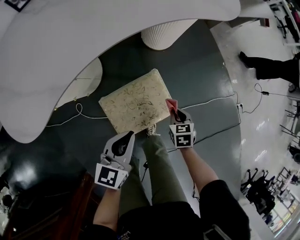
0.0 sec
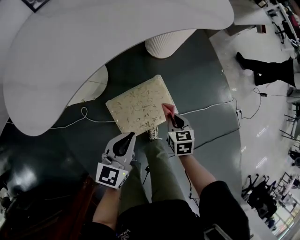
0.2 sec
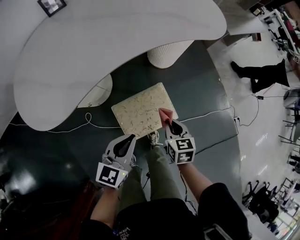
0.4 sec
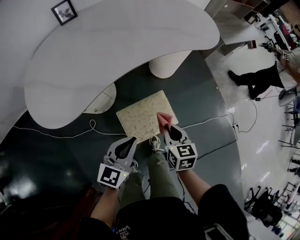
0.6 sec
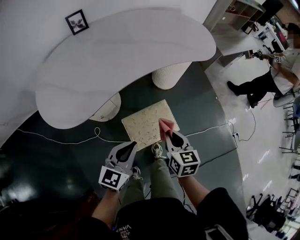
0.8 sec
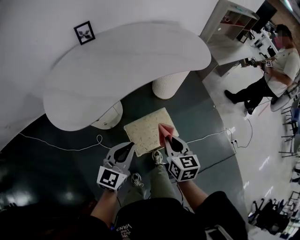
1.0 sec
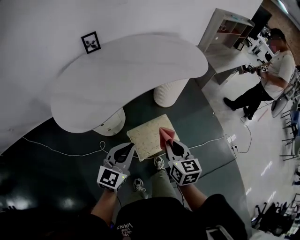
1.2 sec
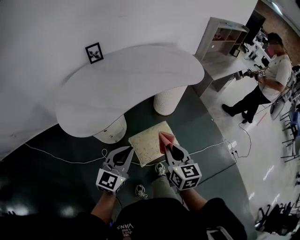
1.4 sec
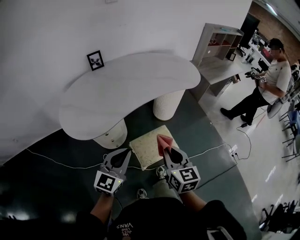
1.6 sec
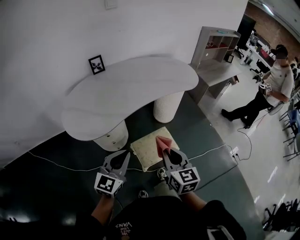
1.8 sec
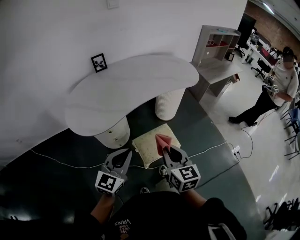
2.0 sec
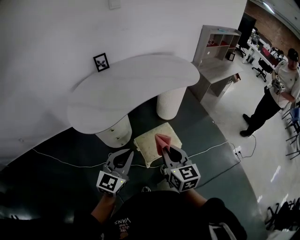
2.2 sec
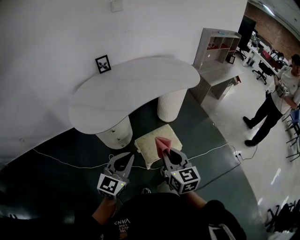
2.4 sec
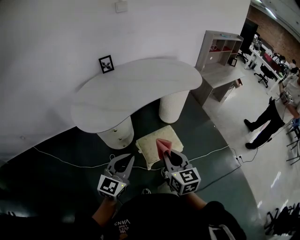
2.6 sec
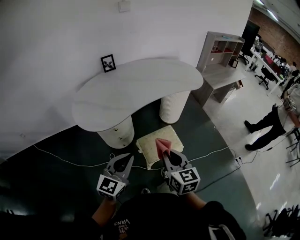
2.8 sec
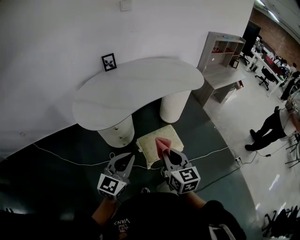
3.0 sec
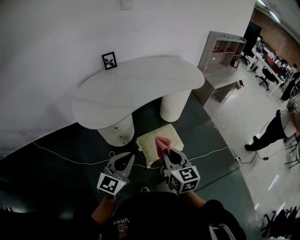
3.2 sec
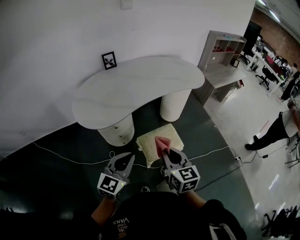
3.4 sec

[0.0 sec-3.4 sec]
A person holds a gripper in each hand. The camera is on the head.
0.0 sec to 1.6 sec: The grippers both shift upward and backward by some 40 cm. The left gripper changes its angle by about 30 degrees; the right gripper tips its fingers upward by some 40 degrees.
1.6 sec to 3.4 sec: The grippers both shift backward by about 10 cm.

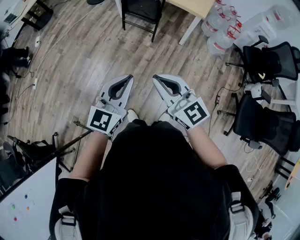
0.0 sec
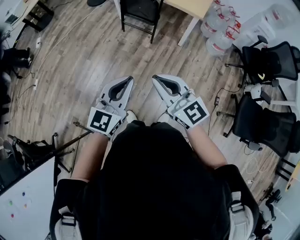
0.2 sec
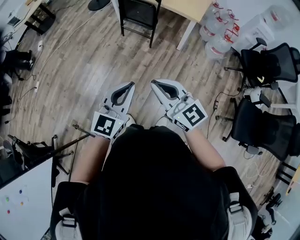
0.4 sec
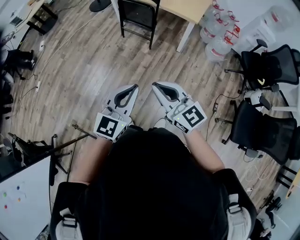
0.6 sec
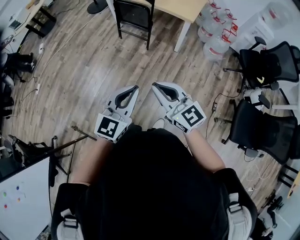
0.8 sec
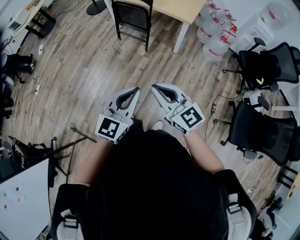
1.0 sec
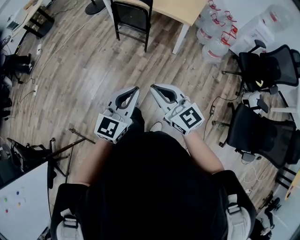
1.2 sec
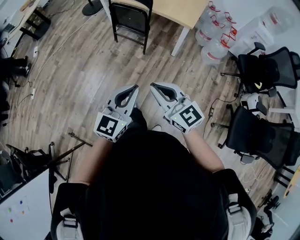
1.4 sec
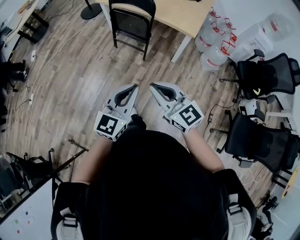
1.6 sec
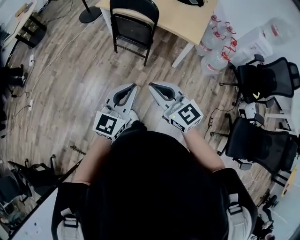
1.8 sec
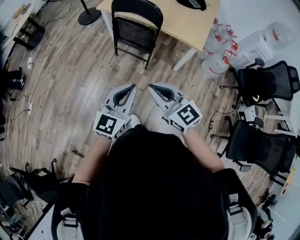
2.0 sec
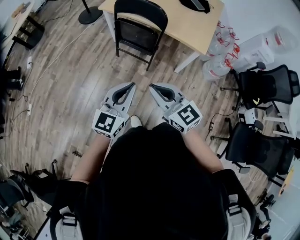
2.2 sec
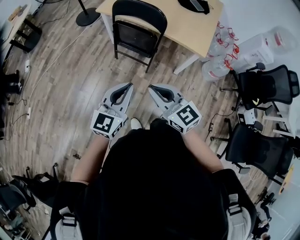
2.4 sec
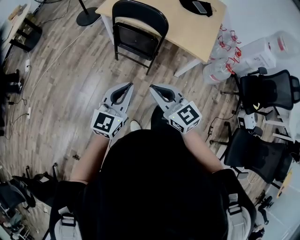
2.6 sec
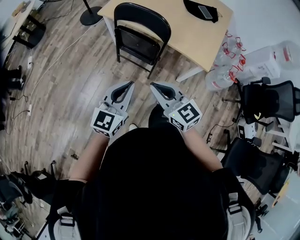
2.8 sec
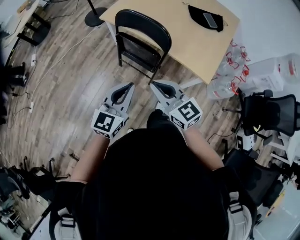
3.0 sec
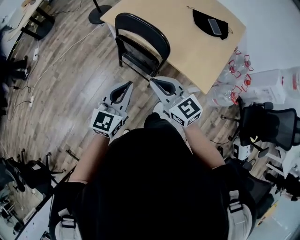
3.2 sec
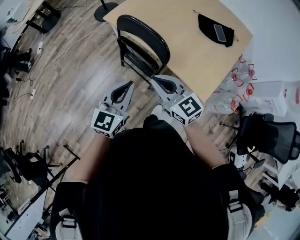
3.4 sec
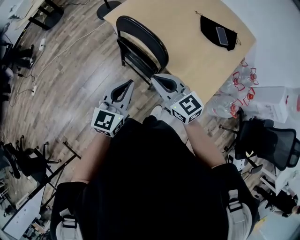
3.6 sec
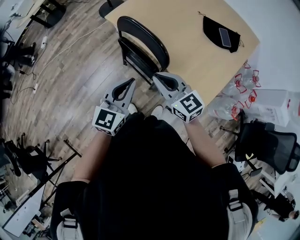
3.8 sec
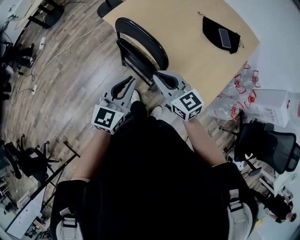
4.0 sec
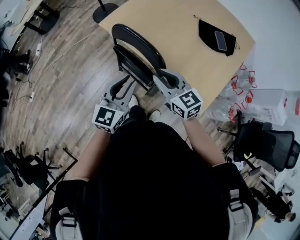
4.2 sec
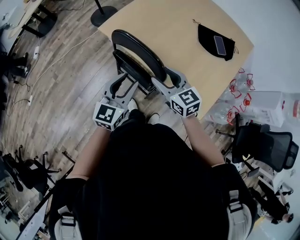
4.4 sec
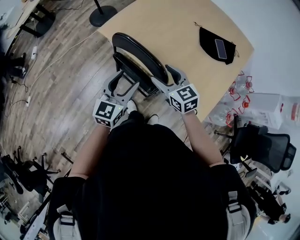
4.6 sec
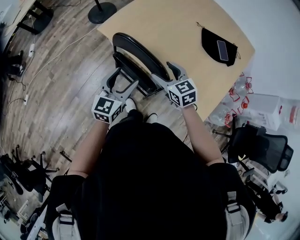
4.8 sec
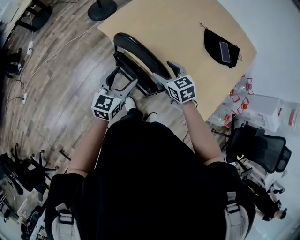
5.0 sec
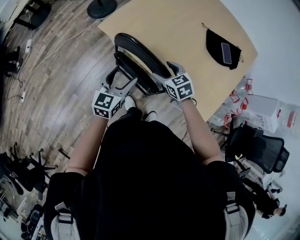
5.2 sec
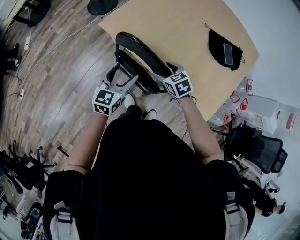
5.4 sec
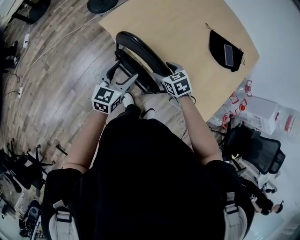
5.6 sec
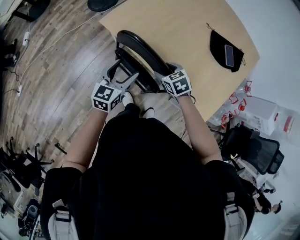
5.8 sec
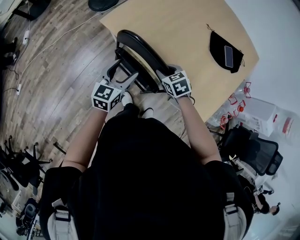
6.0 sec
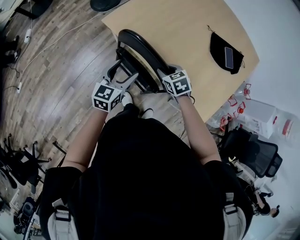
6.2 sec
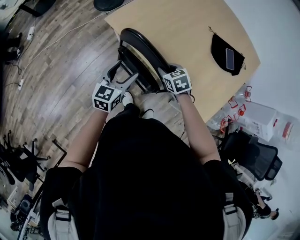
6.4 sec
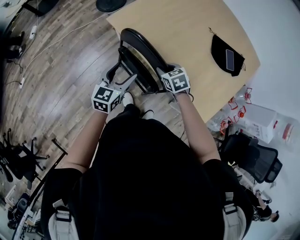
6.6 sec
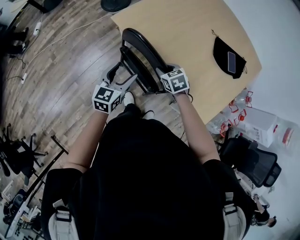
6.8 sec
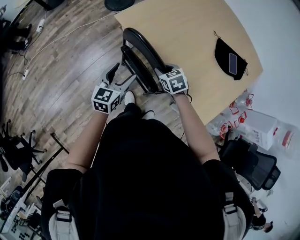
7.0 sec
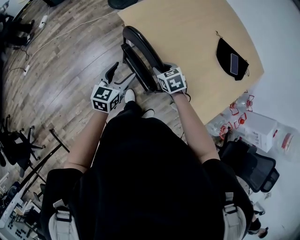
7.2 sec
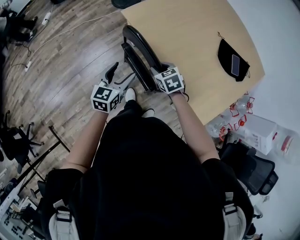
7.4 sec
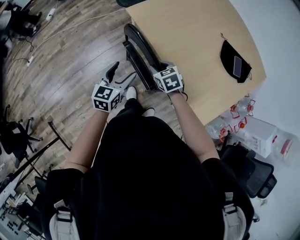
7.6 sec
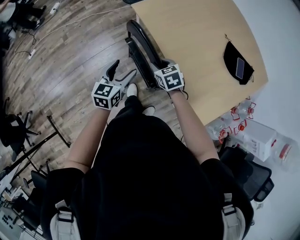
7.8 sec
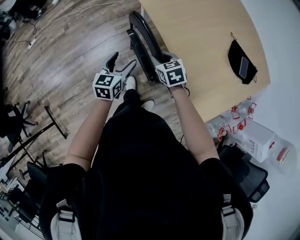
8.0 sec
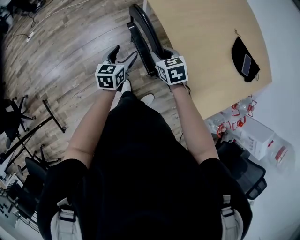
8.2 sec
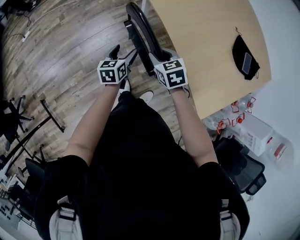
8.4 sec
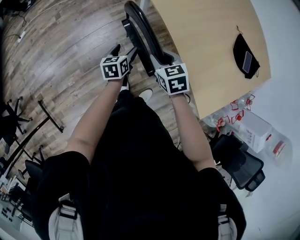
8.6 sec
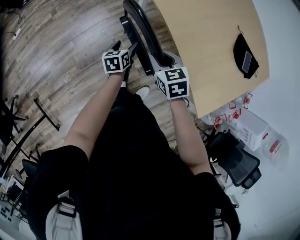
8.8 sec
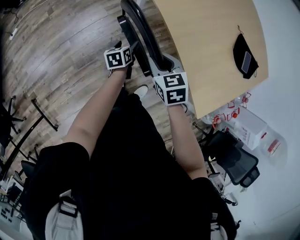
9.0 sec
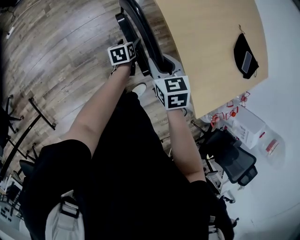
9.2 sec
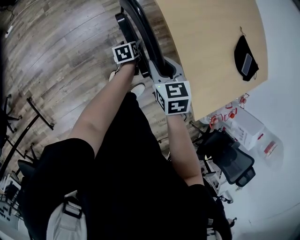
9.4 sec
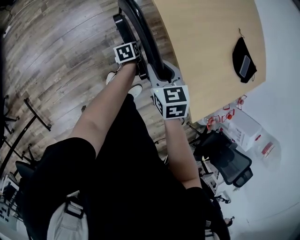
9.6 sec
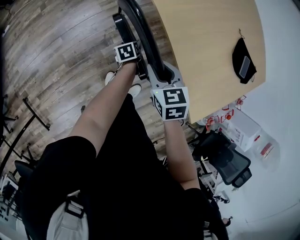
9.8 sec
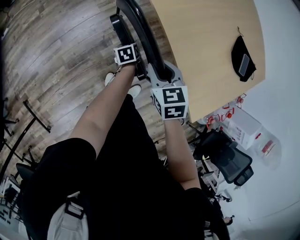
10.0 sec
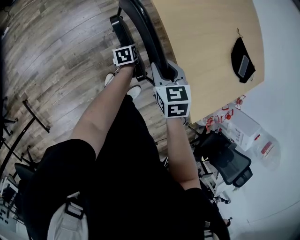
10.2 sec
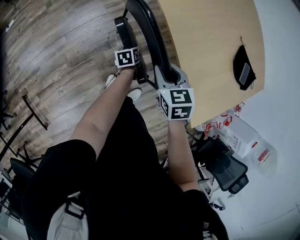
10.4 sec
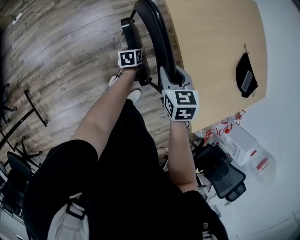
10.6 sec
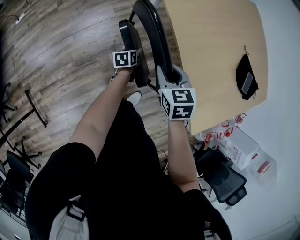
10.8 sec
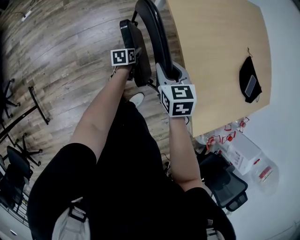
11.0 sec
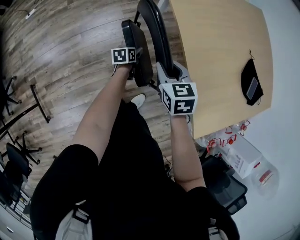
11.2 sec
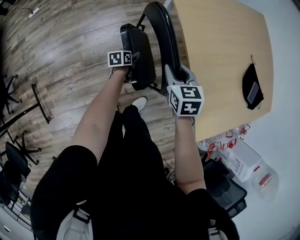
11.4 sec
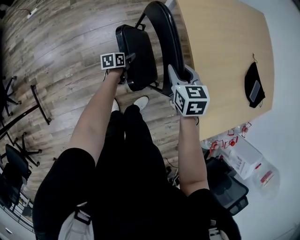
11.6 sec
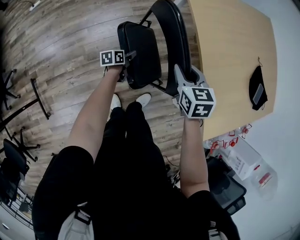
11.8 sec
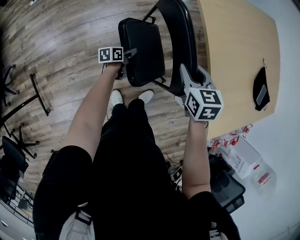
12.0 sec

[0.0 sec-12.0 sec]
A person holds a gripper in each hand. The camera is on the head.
0.0 sec to 1.6 sec: The two grippers go some 20 cm forward and to the right.
1.6 sec to 3.0 sec: Both grippers travel together forward, about 40 cm.
3.0 sec to 4.4 sec: Both grippers move forward and to the right, about 30 cm. The left gripper opens. The right gripper opens.
4.4 sec to 6.0 sec: The left gripper goes roughly 20 cm forward, downward and to the left, and opens. Meanwhile the right gripper shifts about 20 cm downward and forward, and points its fingers approximately 40 degrees further downward.
6.0 sec to 7.6 sec: The left gripper is displaced backward and to the left by roughly 15 cm. Meanwhile the right gripper travels to the left and backward by about 10 cm.
7.6 sec to 9.0 sec: The left gripper moves downward, approximately 25 cm, and swivels approximately 40 degrees. Meanwhile the right gripper heads to the left, covering approximately 10 cm.
9.0 sec to 10.4 sec: The left gripper is displaced downward by approximately 10 cm, and closes.
10.4 sec to 12.0 sec: The left gripper is displaced to the left, backward and downward by about 20 cm; the right gripper shifts some 5 cm to the left.

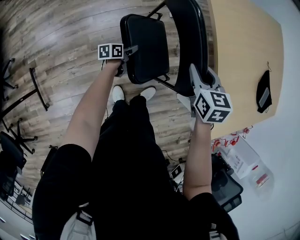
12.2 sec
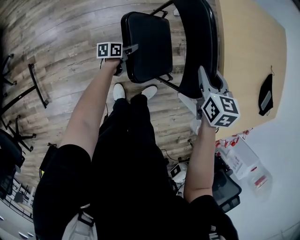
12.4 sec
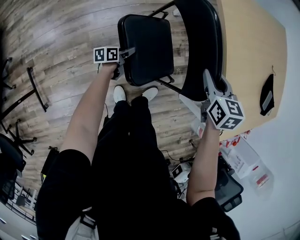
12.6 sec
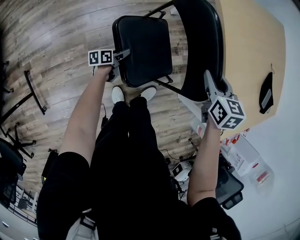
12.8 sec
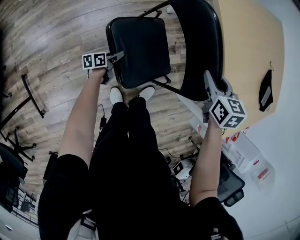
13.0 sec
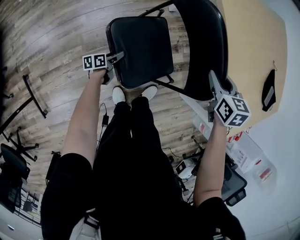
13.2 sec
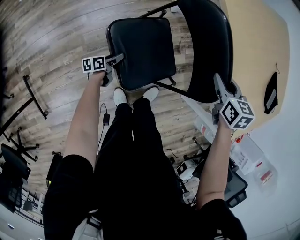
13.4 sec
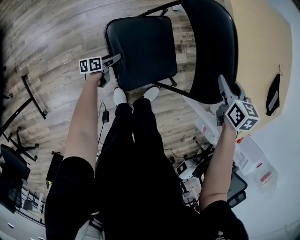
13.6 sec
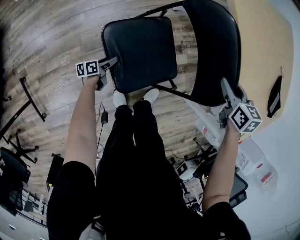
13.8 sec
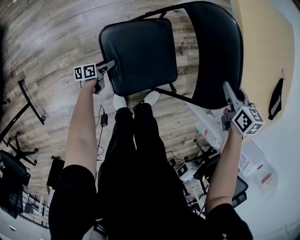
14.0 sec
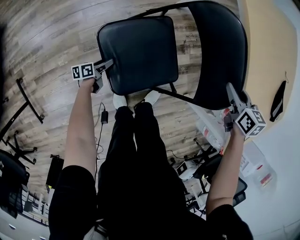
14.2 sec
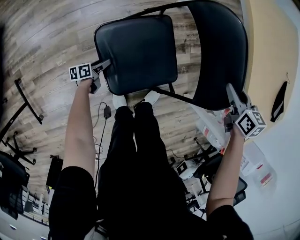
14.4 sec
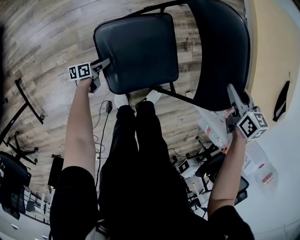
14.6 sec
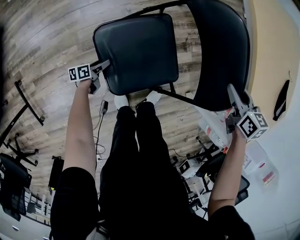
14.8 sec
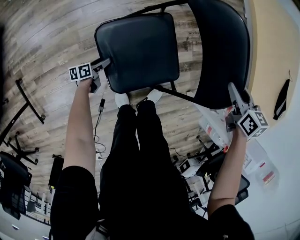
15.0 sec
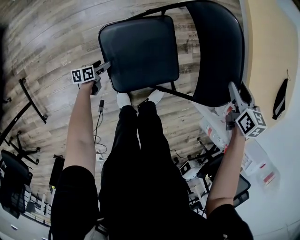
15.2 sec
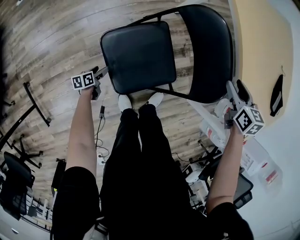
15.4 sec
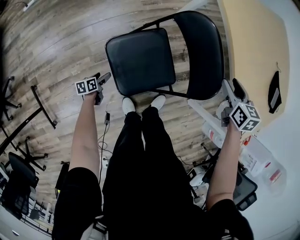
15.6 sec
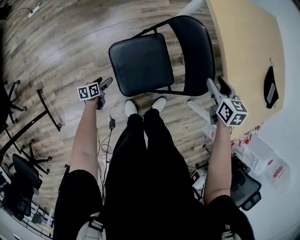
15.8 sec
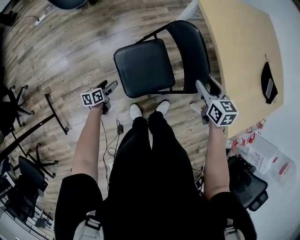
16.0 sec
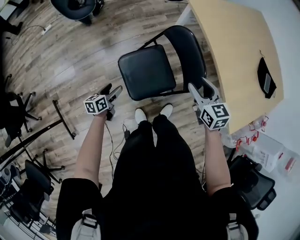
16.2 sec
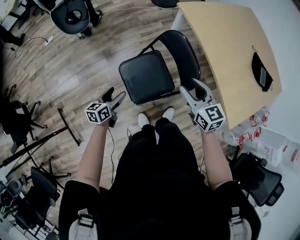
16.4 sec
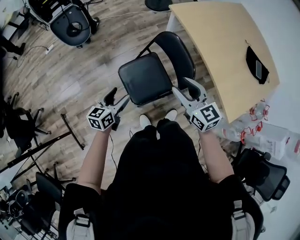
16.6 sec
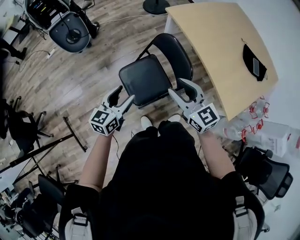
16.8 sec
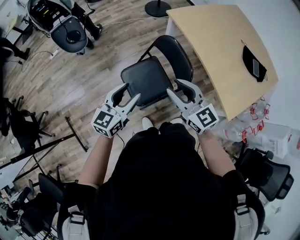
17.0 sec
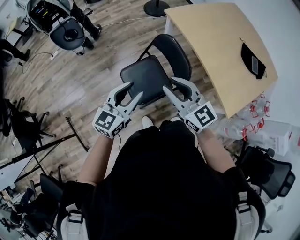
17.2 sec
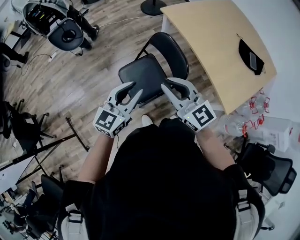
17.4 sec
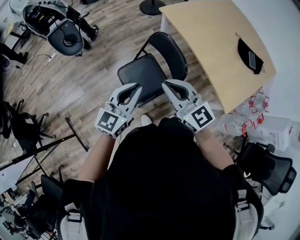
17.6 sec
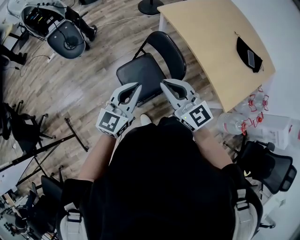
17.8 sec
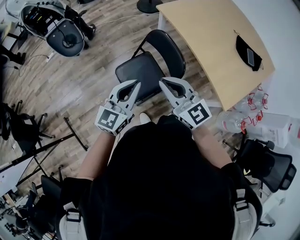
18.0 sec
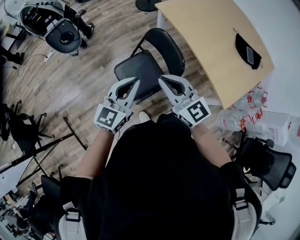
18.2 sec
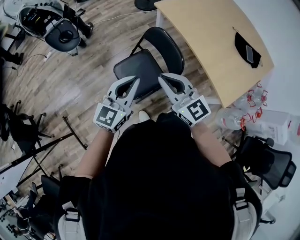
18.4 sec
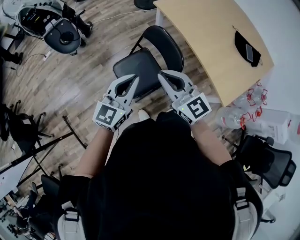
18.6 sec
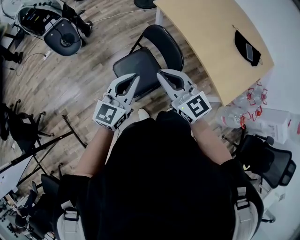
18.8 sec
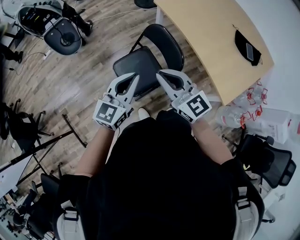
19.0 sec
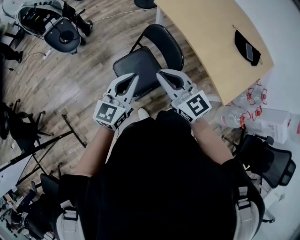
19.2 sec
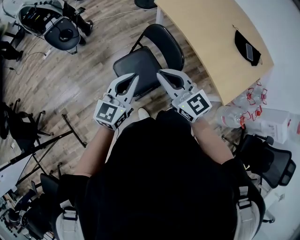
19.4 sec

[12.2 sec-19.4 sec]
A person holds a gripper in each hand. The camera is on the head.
12.2 sec to 13.6 sec: The right gripper is displaced downward and forward by about 10 cm. The left gripper moves downward and to the left, some 20 cm.
13.6 sec to 15.0 sec: The right gripper travels downward by some 5 cm. The left gripper moves downward and to the left, about 10 cm.
15.0 sec to 16.6 sec: The right gripper shifts about 40 cm upward and backward, and tips its fingers upward by roughly 40 degrees. Meanwhile the left gripper is displaced upward by some 60 cm, and rotates around the line of its fingers by some 40 degrees, clockwise from behind.
16.6 sec to 18.0 sec: The left gripper travels upward and to the right by some 25 cm, turns by some 30 degrees, and closes, while the right gripper travels upward and backward by roughly 10 cm, and closes its fingers.
18.0 sec to 19.4 sec: Both grippers stay about where they are.

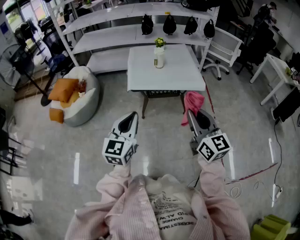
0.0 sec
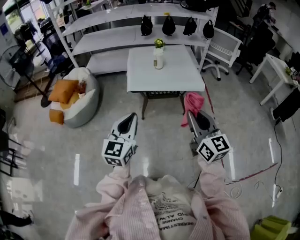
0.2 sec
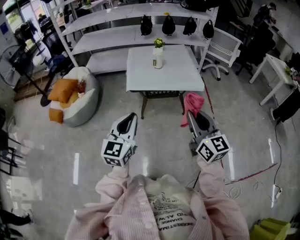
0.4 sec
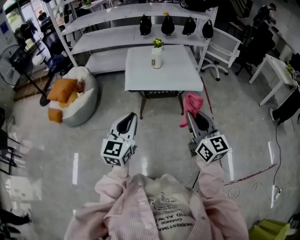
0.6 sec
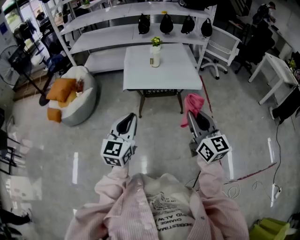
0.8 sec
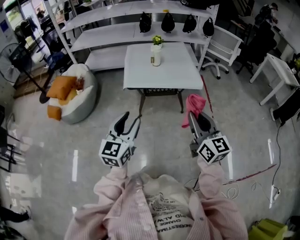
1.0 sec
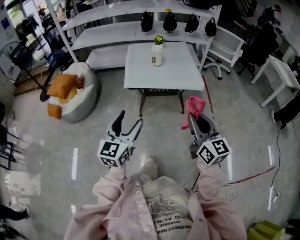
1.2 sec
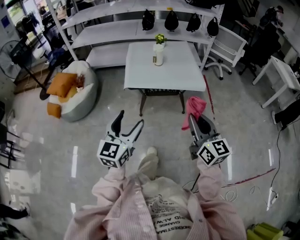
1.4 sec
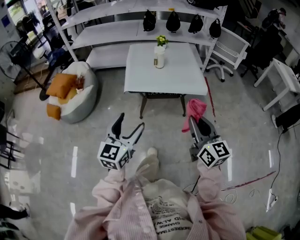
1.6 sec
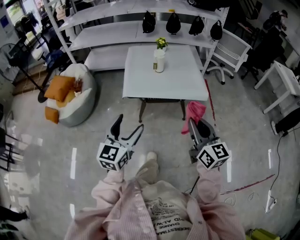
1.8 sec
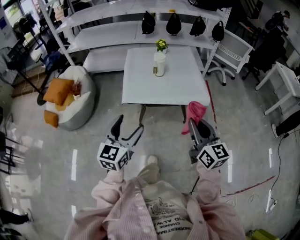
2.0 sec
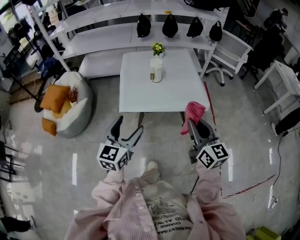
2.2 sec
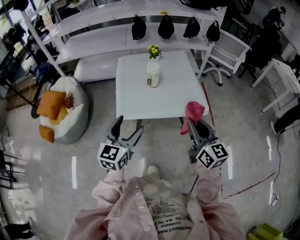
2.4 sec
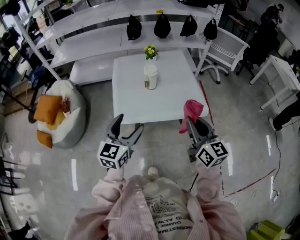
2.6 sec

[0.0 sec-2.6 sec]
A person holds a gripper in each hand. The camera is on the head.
0.0 sec to 1.2 sec: The left gripper opens its fingers.
1.2 sec to 2.6 sec: The grippers both shift forward by roughly 30 cm.
